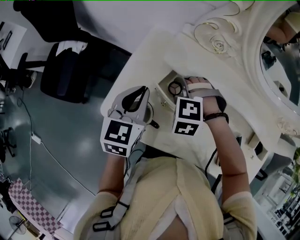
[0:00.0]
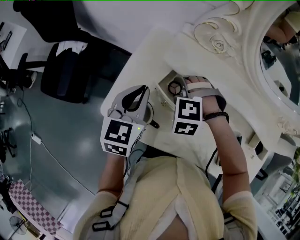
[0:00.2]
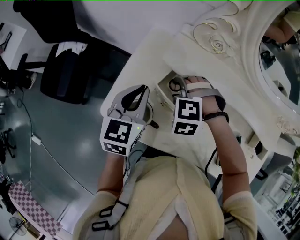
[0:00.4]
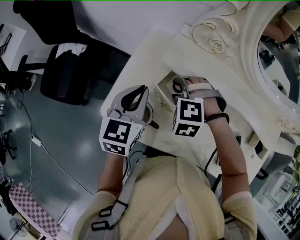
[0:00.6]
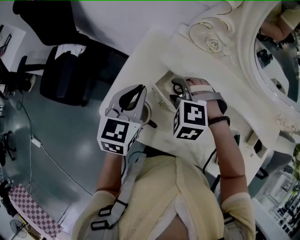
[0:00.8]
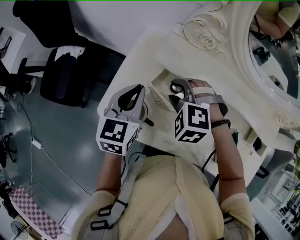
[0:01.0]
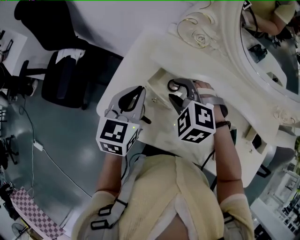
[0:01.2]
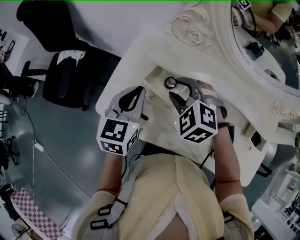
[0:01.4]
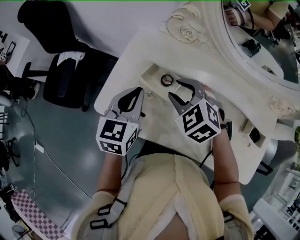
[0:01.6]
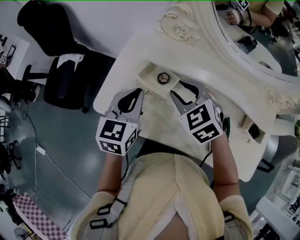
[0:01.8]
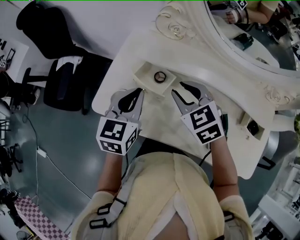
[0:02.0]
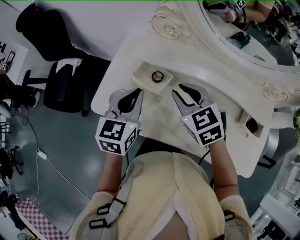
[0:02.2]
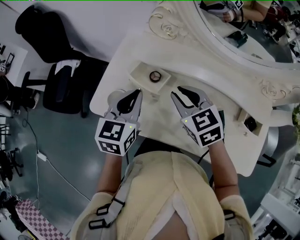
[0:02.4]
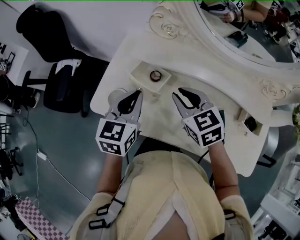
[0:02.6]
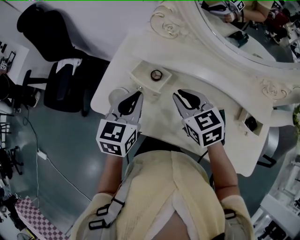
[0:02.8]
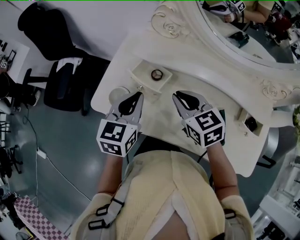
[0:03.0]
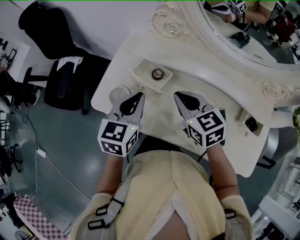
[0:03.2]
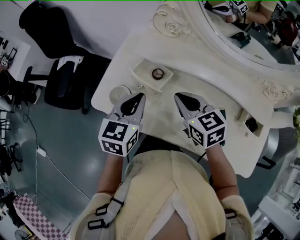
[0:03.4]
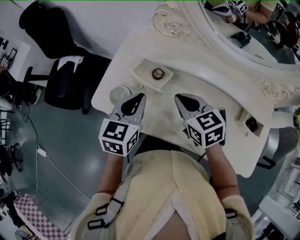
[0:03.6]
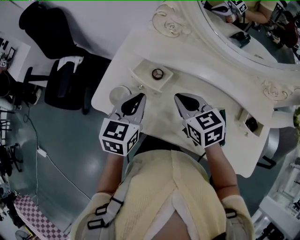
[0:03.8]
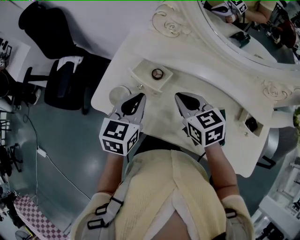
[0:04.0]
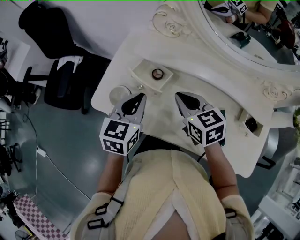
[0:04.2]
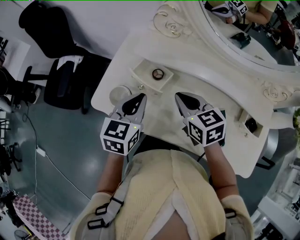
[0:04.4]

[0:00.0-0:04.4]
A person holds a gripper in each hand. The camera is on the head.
0:00.0 to 0:01.4: The right gripper travels upward by some 10 cm, and rotates some 30 degrees, while the left gripper ends up approximately 5 cm from where it was.
0:01.4 to 0:03.0: The right gripper heads backward and to the right, covering some 10 cm, twists roughly 40 degrees clockwise, seen from behind, and closes its fingers. The left gripper travels backward by about 5 cm.
0:03.0 to 0:04.4: The grippers move only a little.

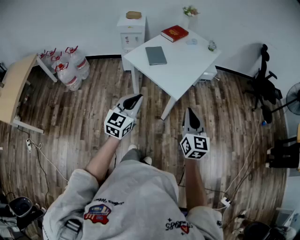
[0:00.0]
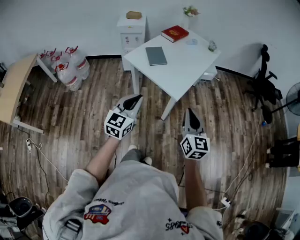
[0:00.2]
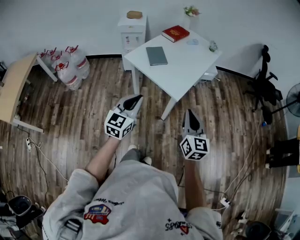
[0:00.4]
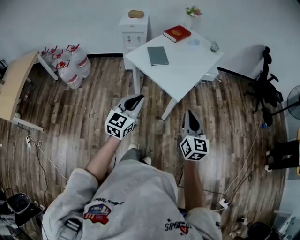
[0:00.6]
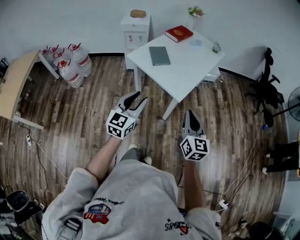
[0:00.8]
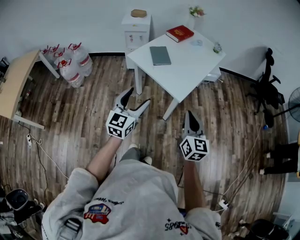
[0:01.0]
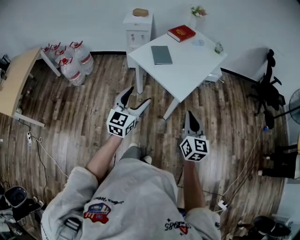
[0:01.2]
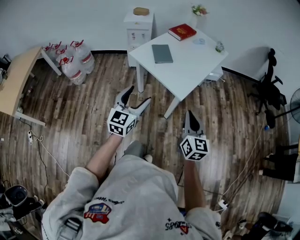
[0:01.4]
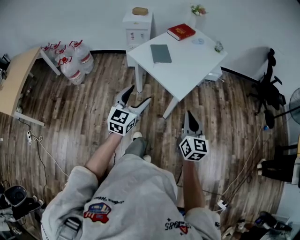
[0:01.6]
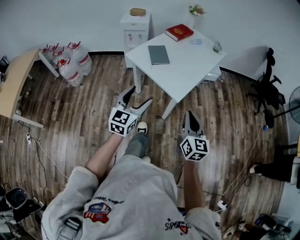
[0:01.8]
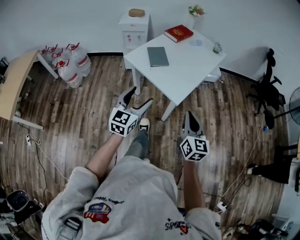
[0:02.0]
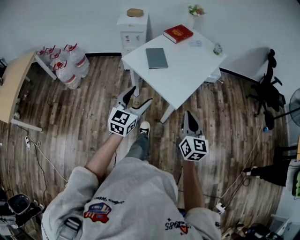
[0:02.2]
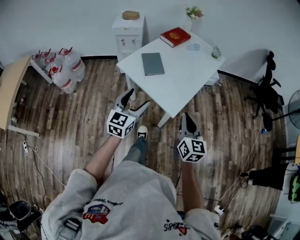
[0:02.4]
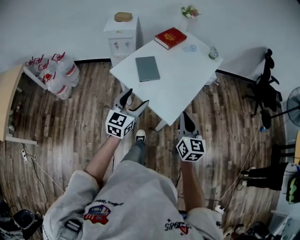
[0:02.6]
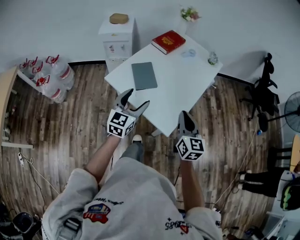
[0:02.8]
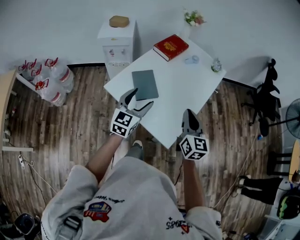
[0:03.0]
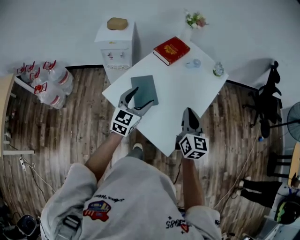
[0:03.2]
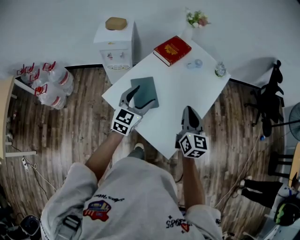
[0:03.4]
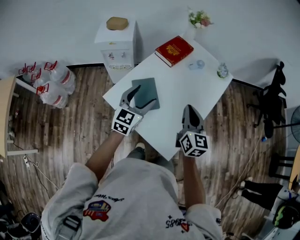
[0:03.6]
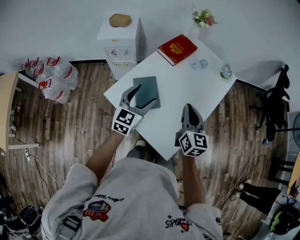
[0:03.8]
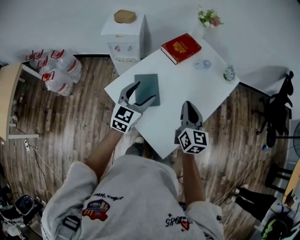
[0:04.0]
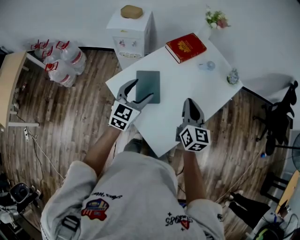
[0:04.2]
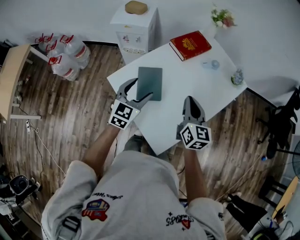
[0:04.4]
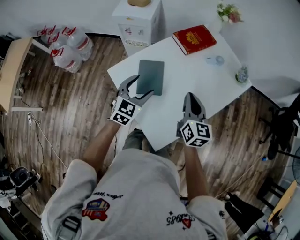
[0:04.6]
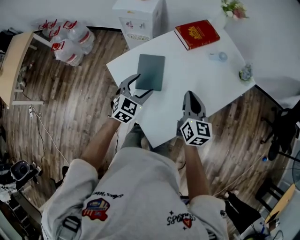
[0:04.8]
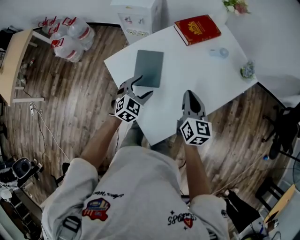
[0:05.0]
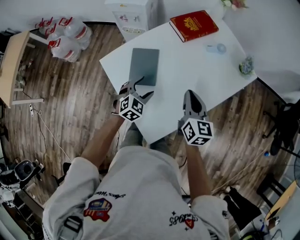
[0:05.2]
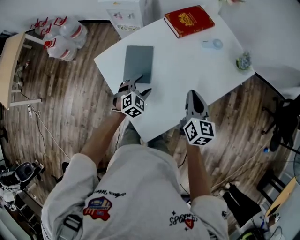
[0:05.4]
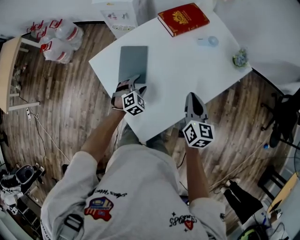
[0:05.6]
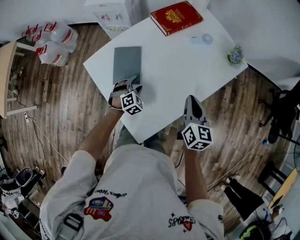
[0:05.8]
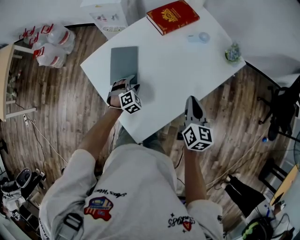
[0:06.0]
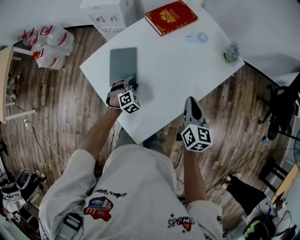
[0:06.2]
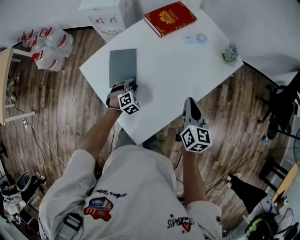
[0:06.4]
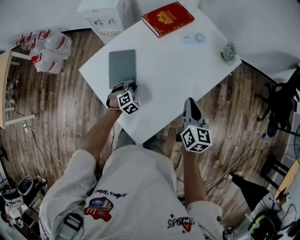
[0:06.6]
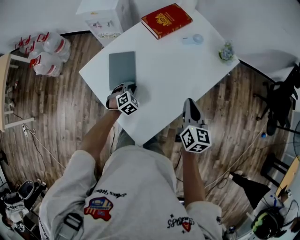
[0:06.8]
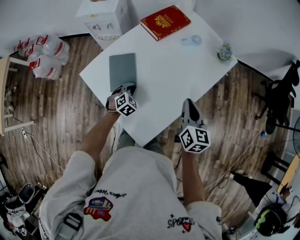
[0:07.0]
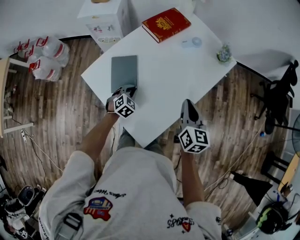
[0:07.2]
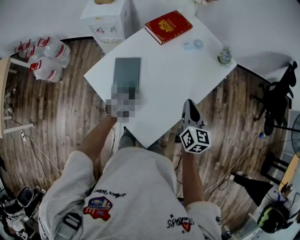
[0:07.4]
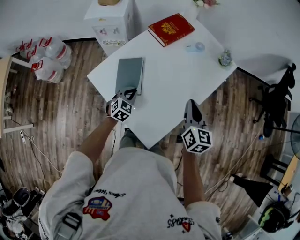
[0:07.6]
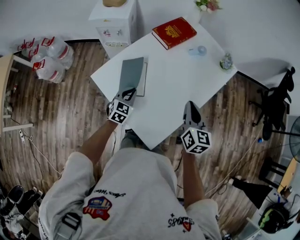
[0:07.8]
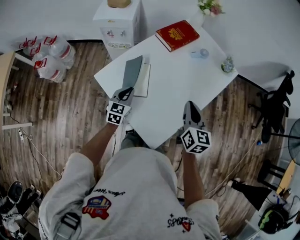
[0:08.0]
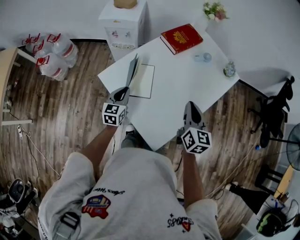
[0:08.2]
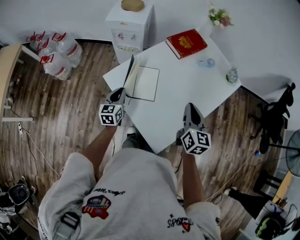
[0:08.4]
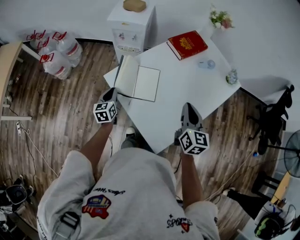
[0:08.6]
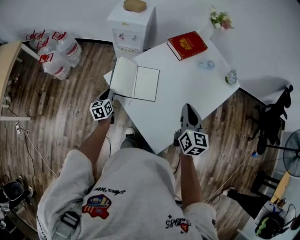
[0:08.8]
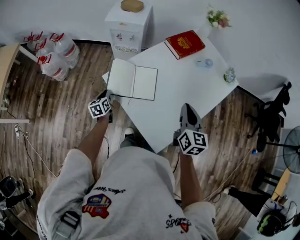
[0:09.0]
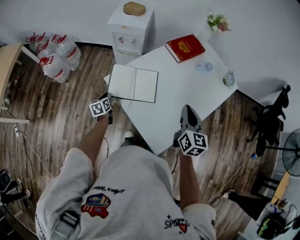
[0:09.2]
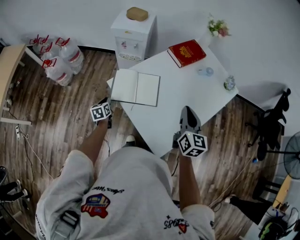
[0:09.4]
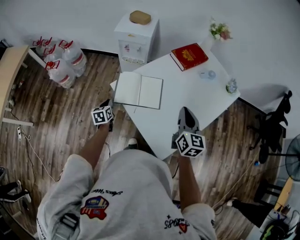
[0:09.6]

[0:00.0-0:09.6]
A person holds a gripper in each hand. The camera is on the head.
0:00.0 to 0:01.6: The left gripper opens up.
0:01.6 to 0:03.2: The two grippers travel together, forward, about 50 cm.
0:03.2 to 0:04.8: The left gripper travels downward and forward by roughly 10 cm, and swivels approximately 30 degrees. Meanwhile the right gripper is displaced forward and downward by about 15 cm, and swivels some 20 degrees.
0:04.8 to 0:06.4: The left gripper is displaced downward and to the right by approximately 20 cm, turns by roughly 40 degrees, and closes up. The right gripper travels to the right by roughly 15 cm.
0:06.4 to 0:08.0: The left gripper shifts some 20 cm upward and to the left, and swivels roughly 50 degrees. The right gripper heads to the left and upward, covering approximately 15 cm.
0:08.0 to 0:09.6: The left gripper travels to the left by some 25 cm, and rotates roughly 40 degrees. The right gripper is displaced to the left by about 10 cm.

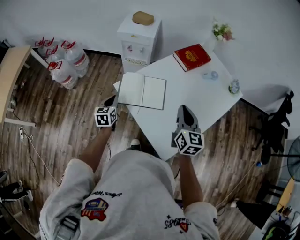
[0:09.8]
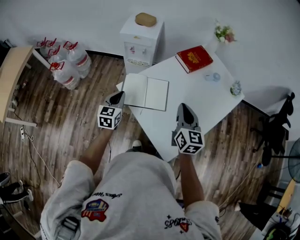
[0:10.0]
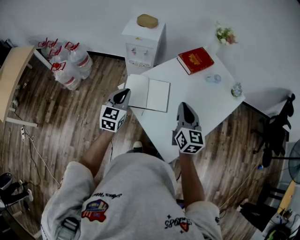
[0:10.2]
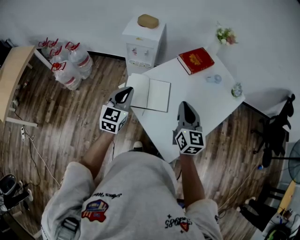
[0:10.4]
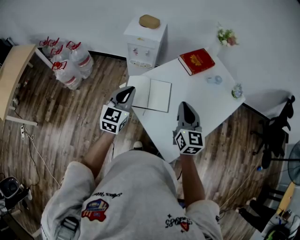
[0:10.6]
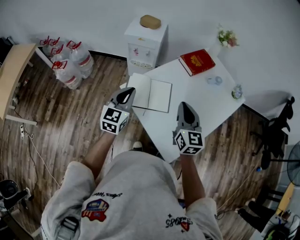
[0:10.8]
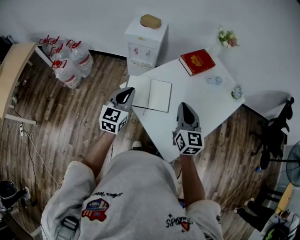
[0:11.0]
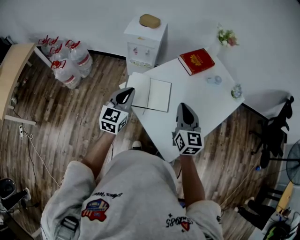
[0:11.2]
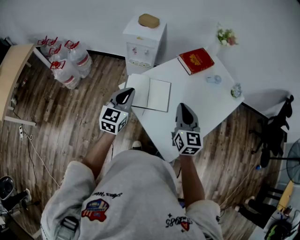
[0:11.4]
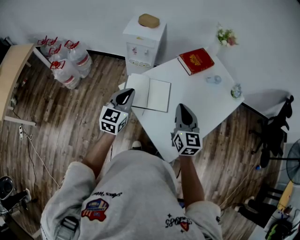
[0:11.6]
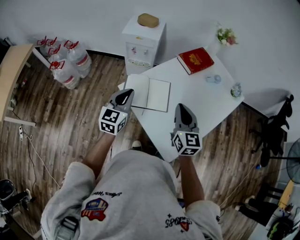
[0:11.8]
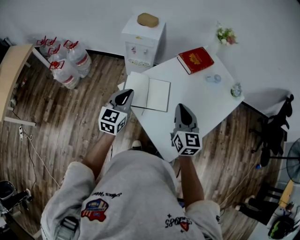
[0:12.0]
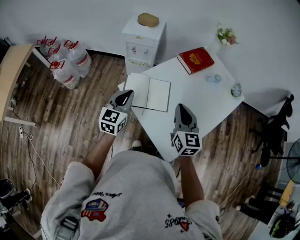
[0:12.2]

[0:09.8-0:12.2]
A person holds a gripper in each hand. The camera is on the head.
0:09.8 to 0:11.0: The right gripper shifts about 5 cm to the left. The left gripper moves upward, roughly 15 cm, and changes its angle by approximately 30 degrees.
0:11.0 to 0:12.2: The grippers make only small movements.

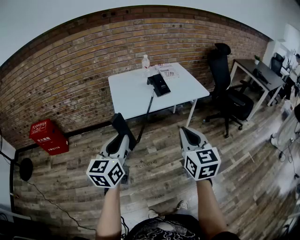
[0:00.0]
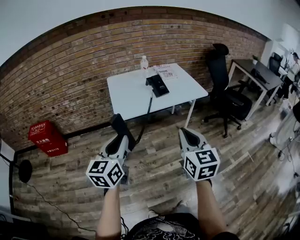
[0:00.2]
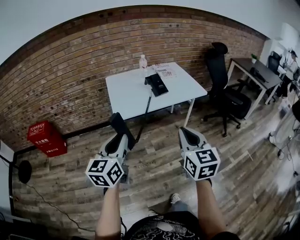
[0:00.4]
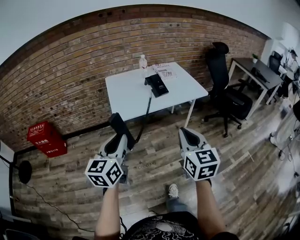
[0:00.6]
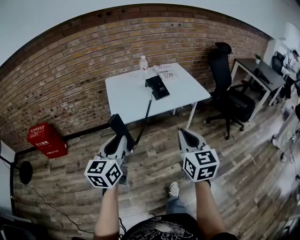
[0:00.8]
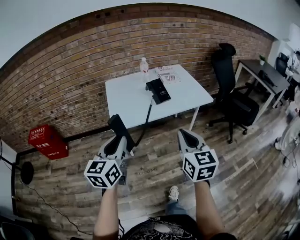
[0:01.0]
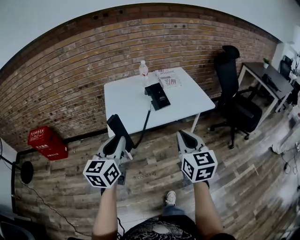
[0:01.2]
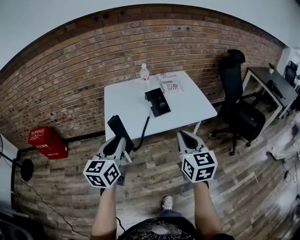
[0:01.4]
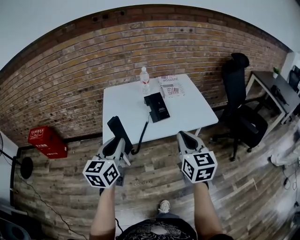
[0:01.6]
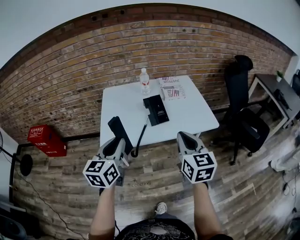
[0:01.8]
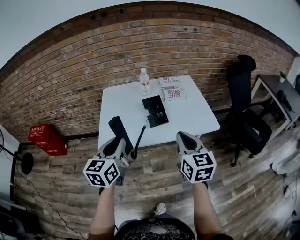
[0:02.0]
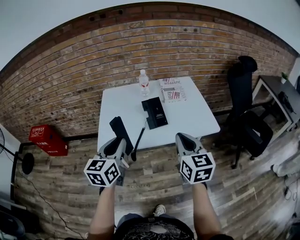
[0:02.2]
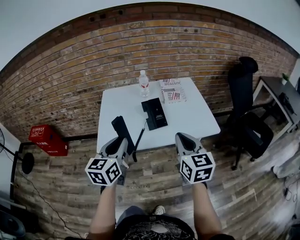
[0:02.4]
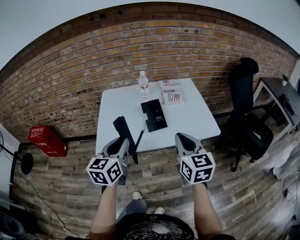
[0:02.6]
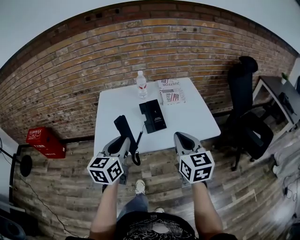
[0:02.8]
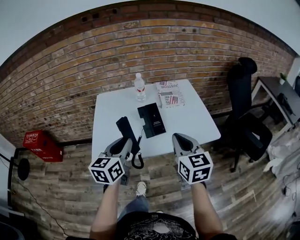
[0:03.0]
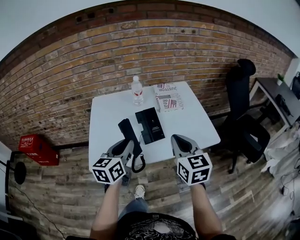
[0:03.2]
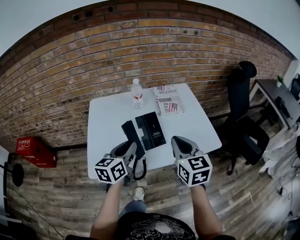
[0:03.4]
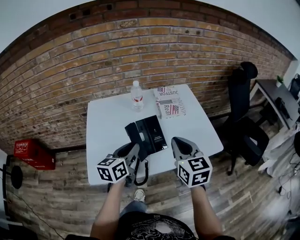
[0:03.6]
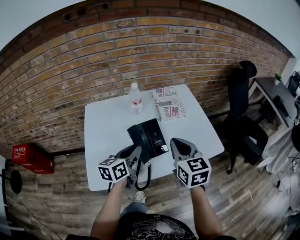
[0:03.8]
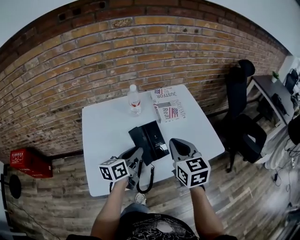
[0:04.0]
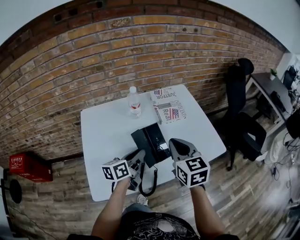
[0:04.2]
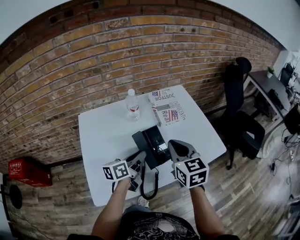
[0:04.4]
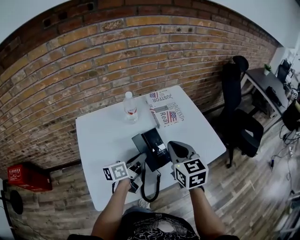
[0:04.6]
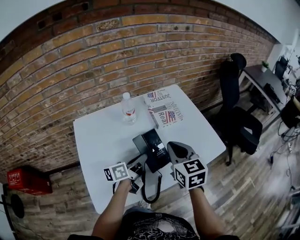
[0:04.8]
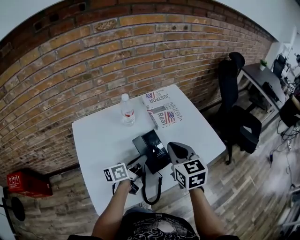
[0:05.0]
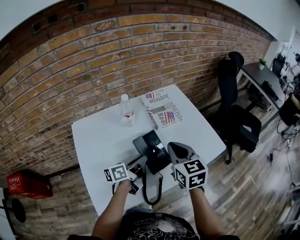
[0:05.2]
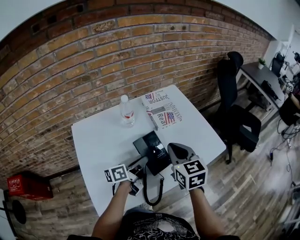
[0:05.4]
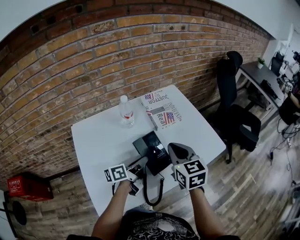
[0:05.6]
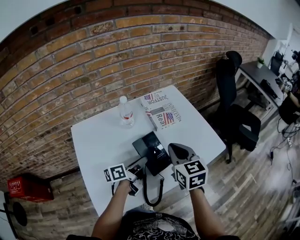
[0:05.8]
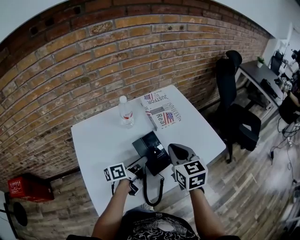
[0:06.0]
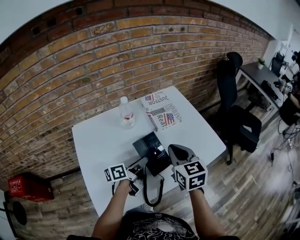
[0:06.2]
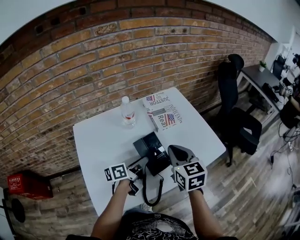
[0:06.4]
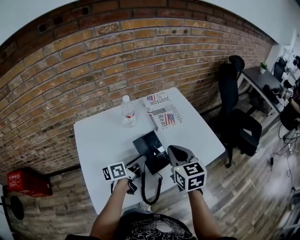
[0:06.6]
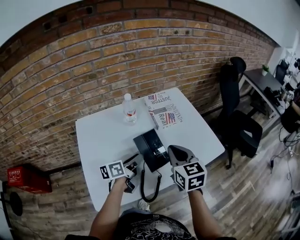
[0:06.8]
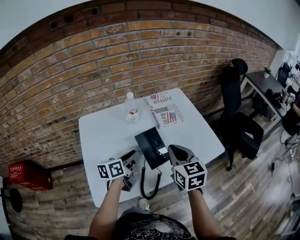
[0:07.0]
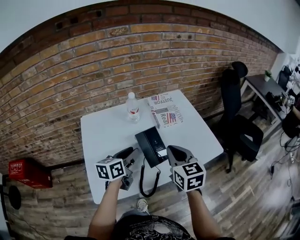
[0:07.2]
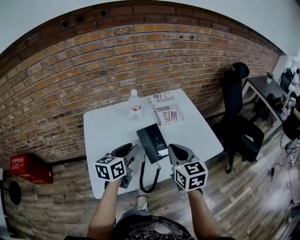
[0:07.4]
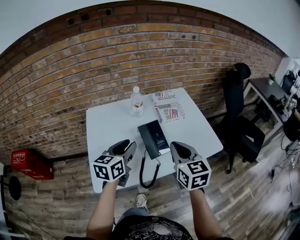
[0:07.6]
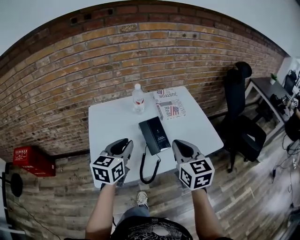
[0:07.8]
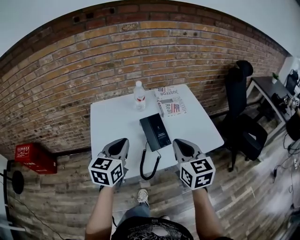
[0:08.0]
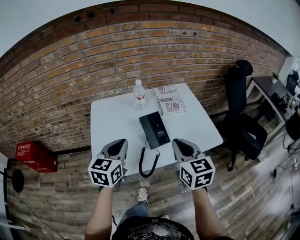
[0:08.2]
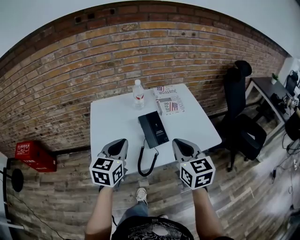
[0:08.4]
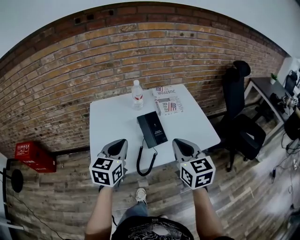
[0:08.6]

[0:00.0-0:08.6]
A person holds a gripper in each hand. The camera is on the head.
0:00.0 to 0:01.4: Both grippers travel together forward, about 20 cm.
0:01.4 to 0:02.8: The right gripper shifts approximately 15 cm forward. Meanwhile the left gripper heads forward and to the right, covering about 15 cm.
0:02.8 to 0:04.4: The right gripper goes roughly 20 cm forward and to the left. The left gripper is displaced forward and downward by approximately 25 cm, and swivels roughly 50 degrees.
0:04.4 to 0:05.8: The grippers make only small movements.
0:05.8 to 0:07.2: The right gripper travels backward by about 5 cm. The left gripper is displaced upward by roughly 10 cm, and rotates roughly 40 degrees.
0:07.2 to 0:08.6: The left gripper shifts roughly 15 cm backward and upward, rotates about 30 degrees, and closes, while the right gripper shifts about 10 cm backward.
